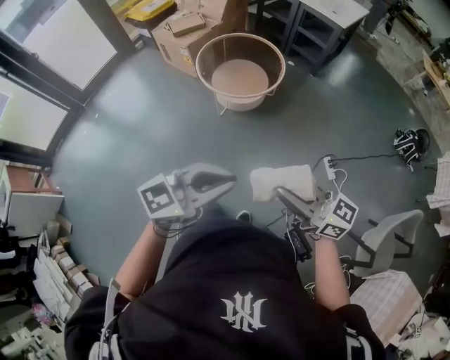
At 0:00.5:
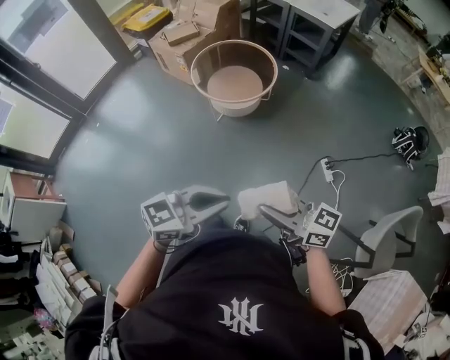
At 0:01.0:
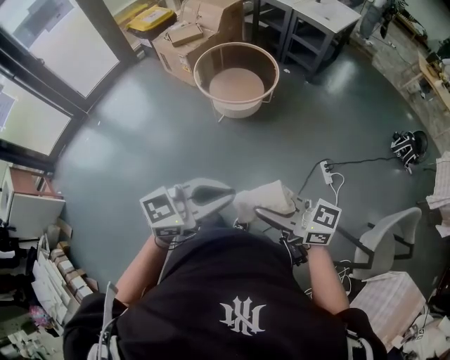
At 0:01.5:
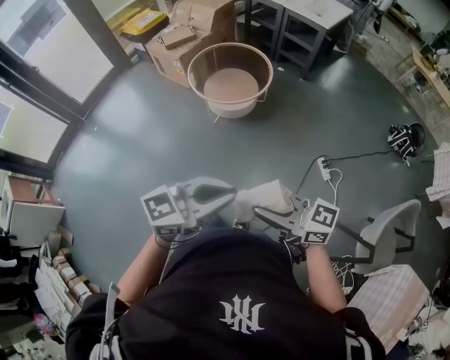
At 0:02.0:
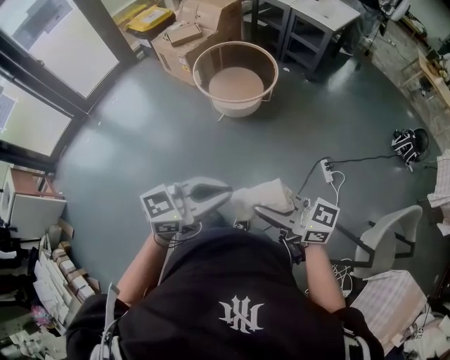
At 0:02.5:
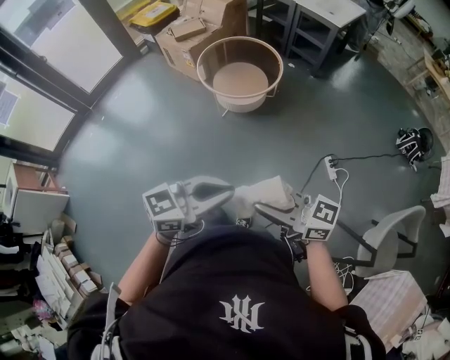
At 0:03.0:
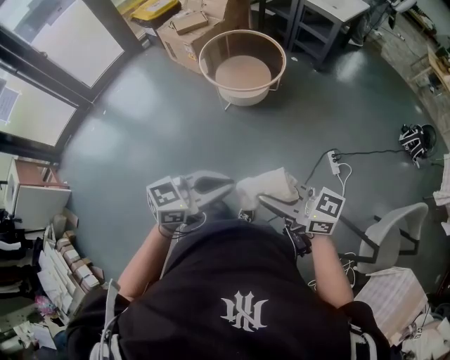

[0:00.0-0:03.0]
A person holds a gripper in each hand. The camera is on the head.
0:00.0 to 0:01.5: The right gripper shifts by approximately 10 cm. Meanwhile the left gripper ends up approximately 5 cm from where it was.
0:01.5 to 0:03.0: The left gripper moves downward, about 5 cm.

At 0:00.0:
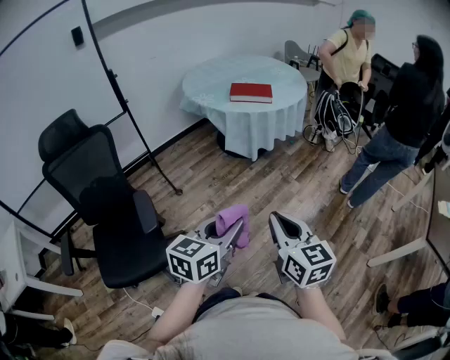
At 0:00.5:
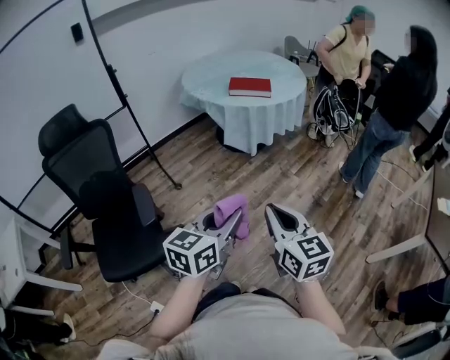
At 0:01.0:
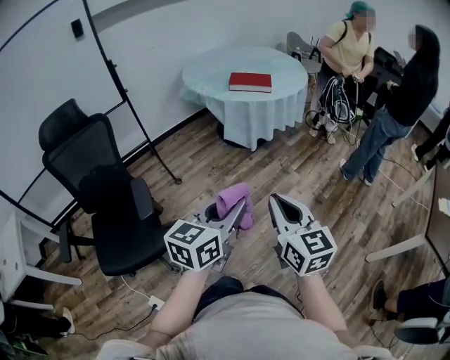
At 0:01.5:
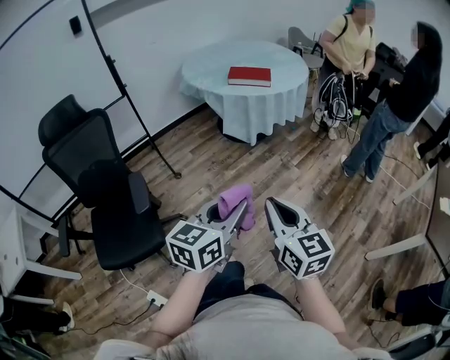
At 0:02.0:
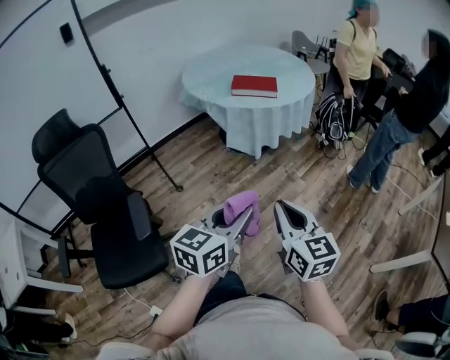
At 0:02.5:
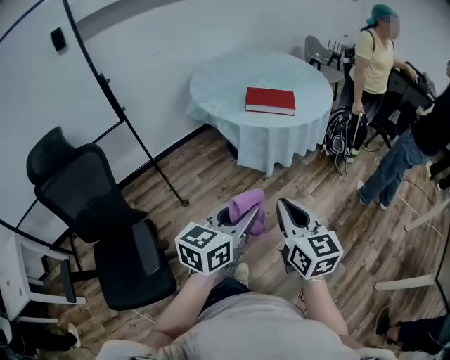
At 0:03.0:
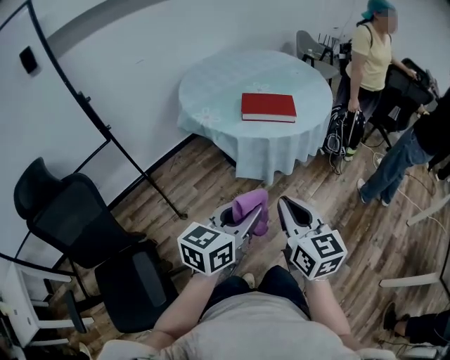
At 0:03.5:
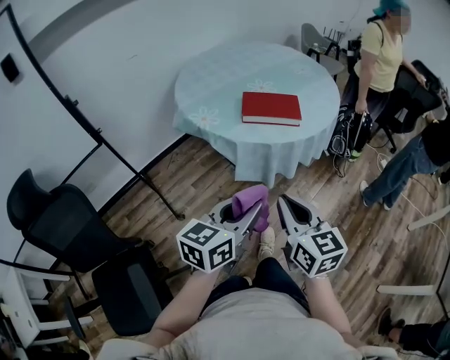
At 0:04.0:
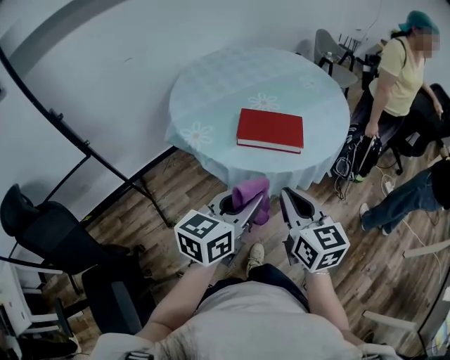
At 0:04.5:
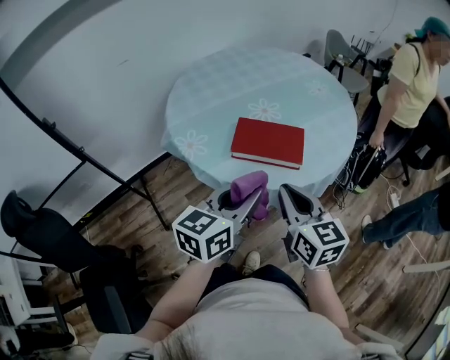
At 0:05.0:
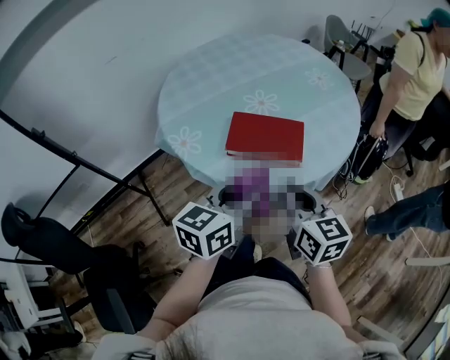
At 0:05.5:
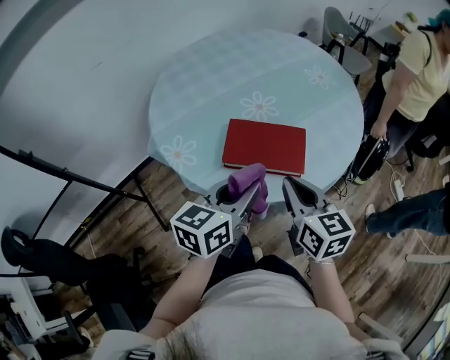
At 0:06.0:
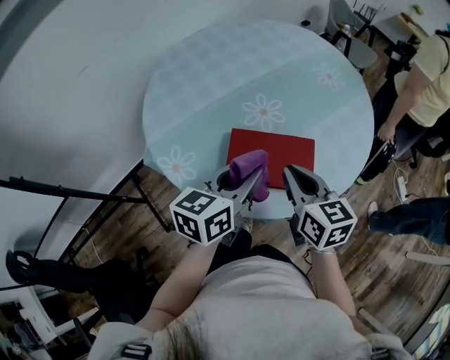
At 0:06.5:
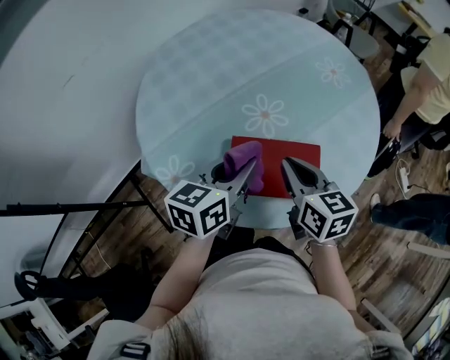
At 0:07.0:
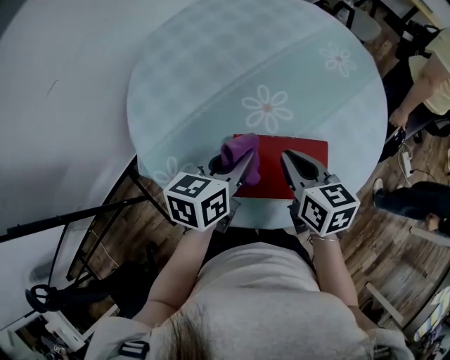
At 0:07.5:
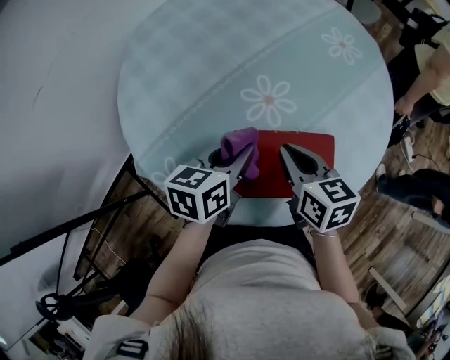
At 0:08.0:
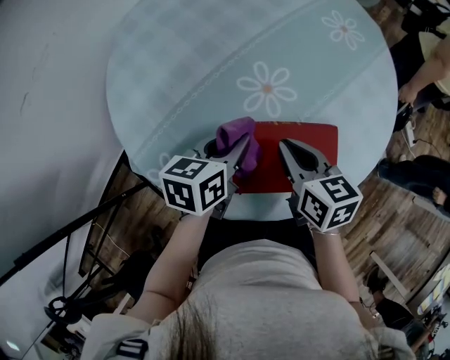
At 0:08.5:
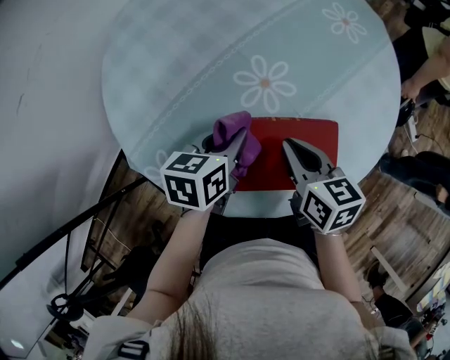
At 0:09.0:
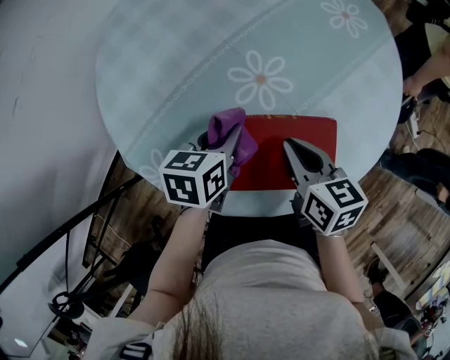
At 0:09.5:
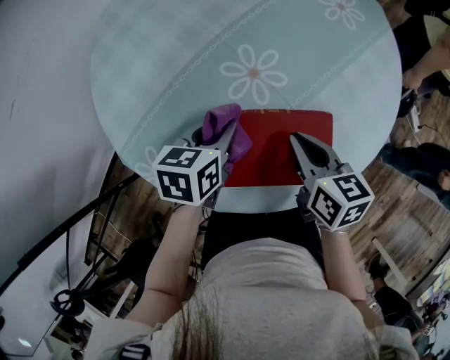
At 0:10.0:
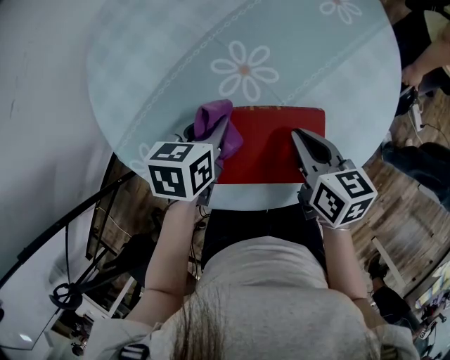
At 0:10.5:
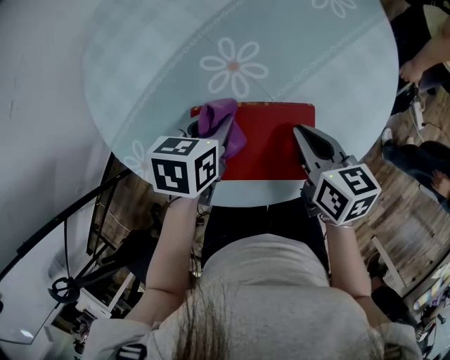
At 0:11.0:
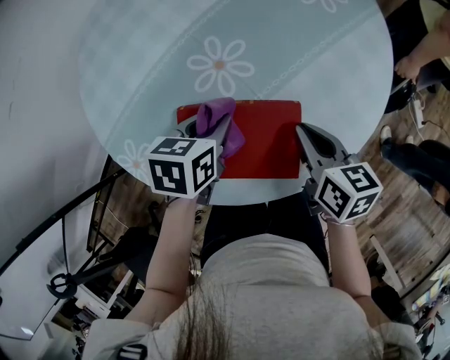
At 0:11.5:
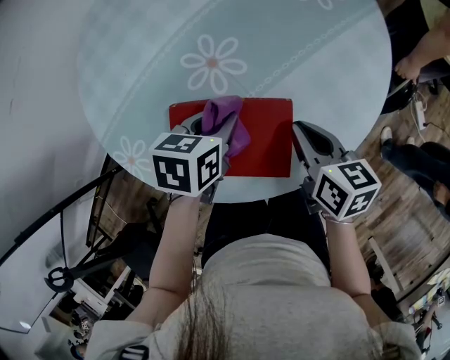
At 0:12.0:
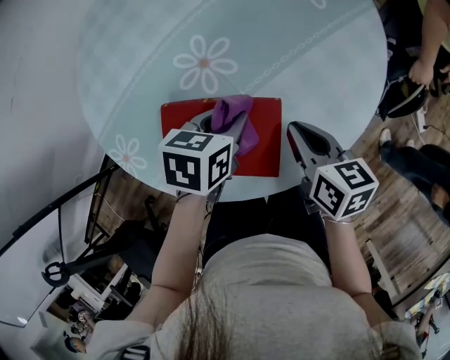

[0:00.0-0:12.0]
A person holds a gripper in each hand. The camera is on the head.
0:00.0 to 0:02.0: Both grippers move forward, approximately 10 cm.
0:02.0 to 0:04.0: The pair of grippers is taken forward, about 50 cm.
0:04.0 to 0:06.0: Both grippers move forward, approximately 30 cm.
0:06.0 to 0:08.0: The right gripper shifts roughly 10 cm forward and downward. The left gripper heads forward, downward and to the left, covering approximately 20 cm, and turns by about 20 degrees.
0:08.0 to 0:10.0: The right gripper travels to the right by roughly 10 cm.
0:10.0 to 0:12.0: Both grippers travel together to the right, roughly 10 cm.

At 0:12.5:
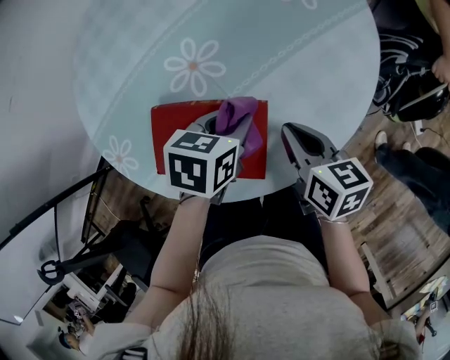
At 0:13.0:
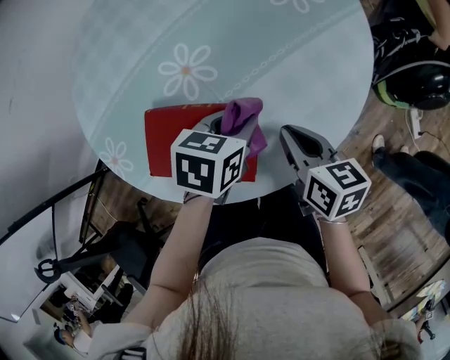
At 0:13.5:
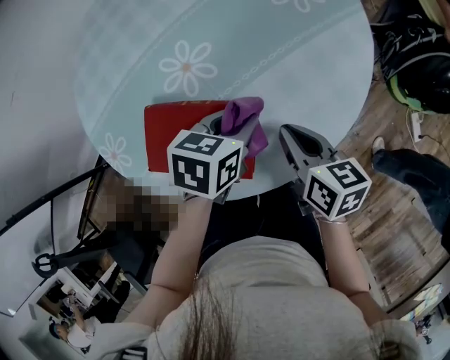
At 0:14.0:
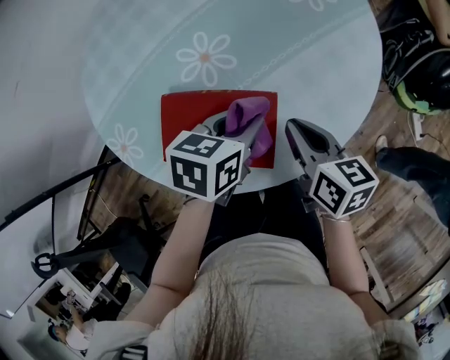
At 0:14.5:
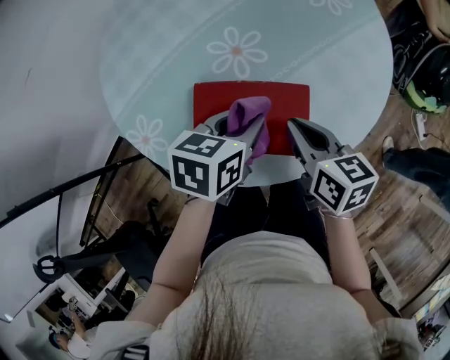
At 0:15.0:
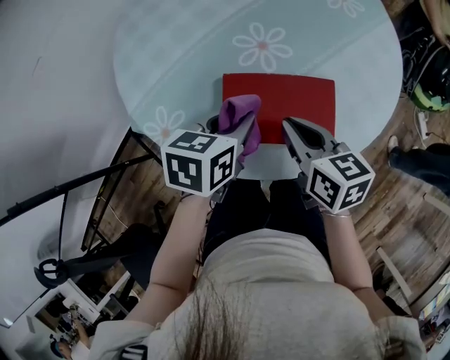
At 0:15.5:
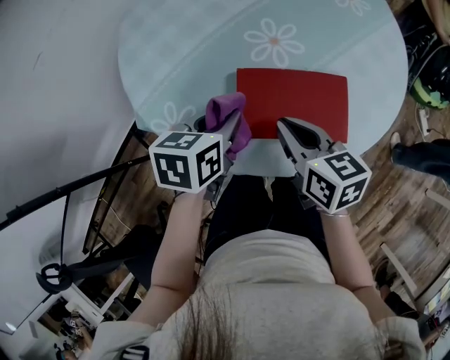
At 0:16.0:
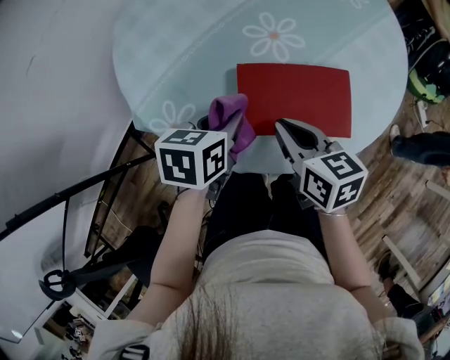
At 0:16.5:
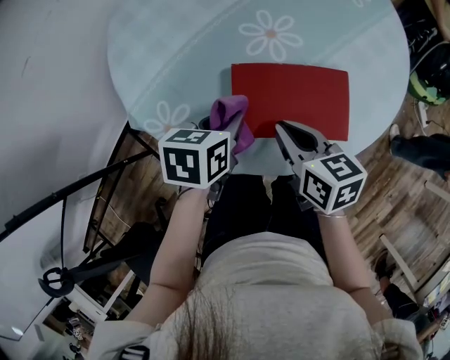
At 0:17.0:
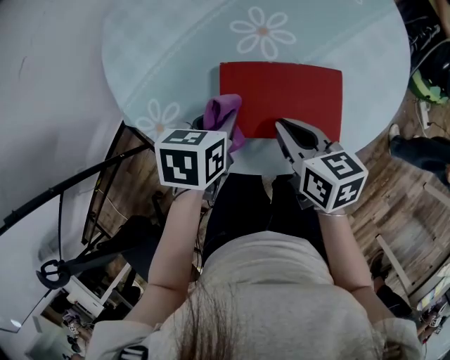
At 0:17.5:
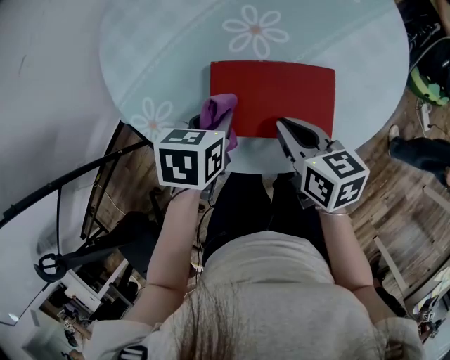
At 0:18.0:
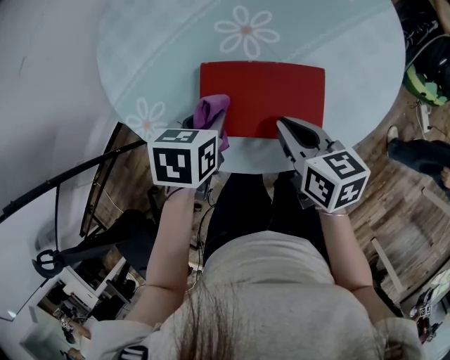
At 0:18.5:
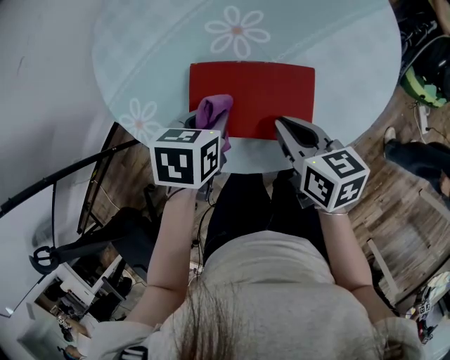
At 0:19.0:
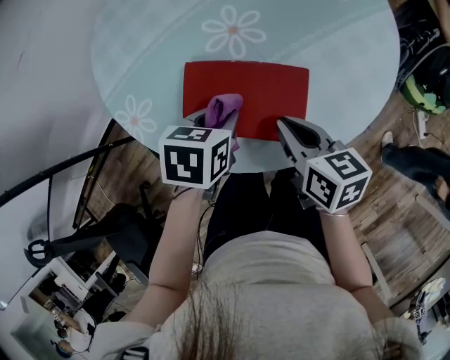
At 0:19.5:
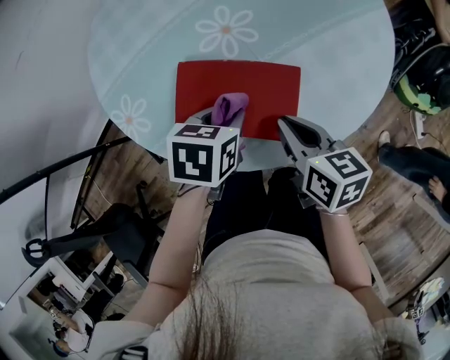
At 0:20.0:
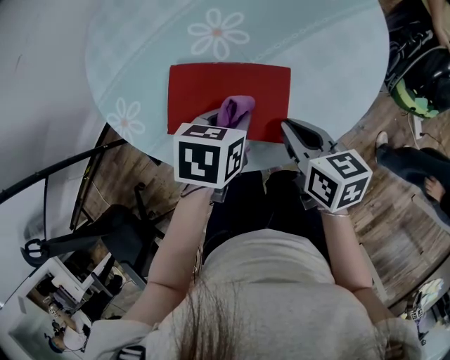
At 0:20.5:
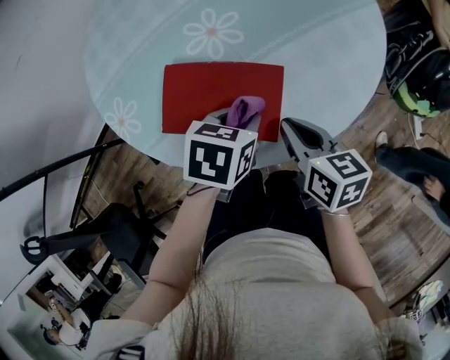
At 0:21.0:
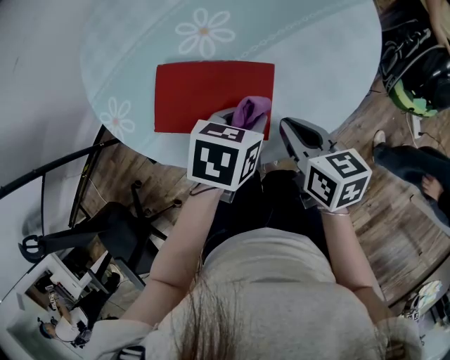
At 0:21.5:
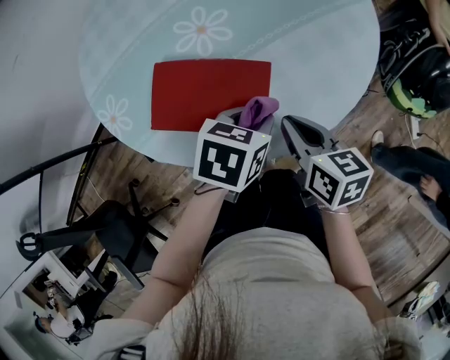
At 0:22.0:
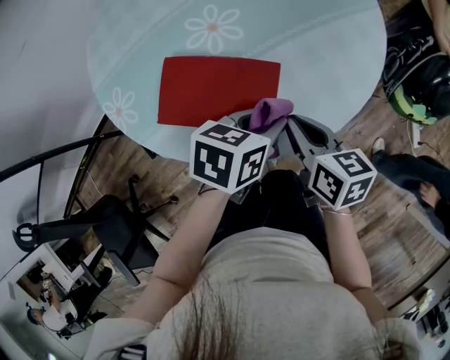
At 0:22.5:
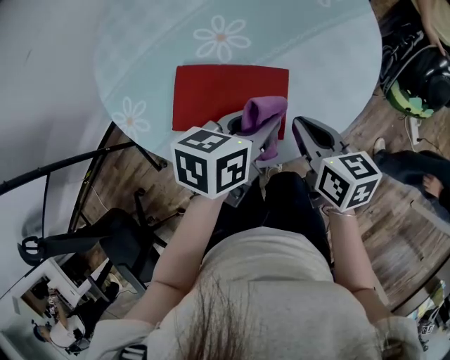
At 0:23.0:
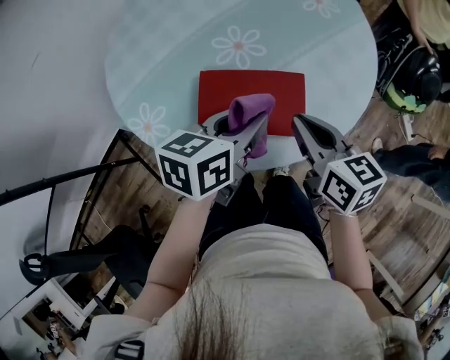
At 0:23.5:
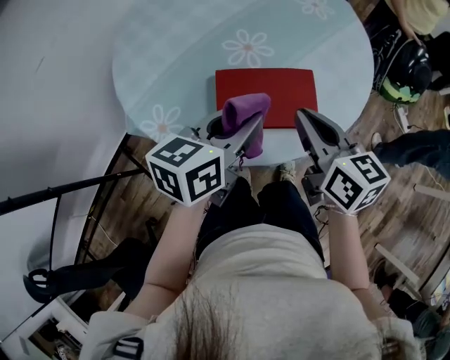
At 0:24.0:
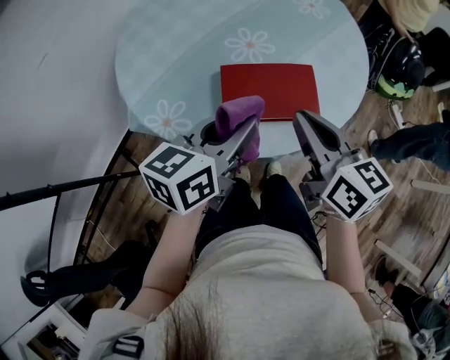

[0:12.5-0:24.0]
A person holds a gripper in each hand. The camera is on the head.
0:12.5 to 0:14.5: The right gripper shifts some 10 cm to the left. Meanwhile the left gripper is displaced to the left, upward and backward by roughly 10 cm.
0:14.5 to 0:16.5: The grippers both shift to the left by some 15 cm.
0:16.5 to 0:18.5: The grippers both shift to the right by some 10 cm.
0:18.5 to 0:20.0: The right gripper travels to the right by roughly 5 cm; the left gripper shifts some 10 cm to the right.
0:20.0 to 0:22.0: The left gripper goes approximately 10 cm to the right.
0:22.0 to 0:24.0: The right gripper shifts roughly 25 cm upward, to the left and backward, and changes its angle by some 30 degrees. The left gripper goes about 25 cm to the left, upward and backward, and turns by about 30 degrees.
